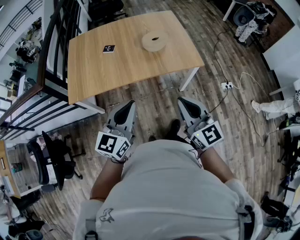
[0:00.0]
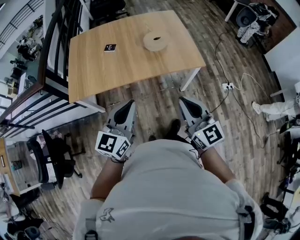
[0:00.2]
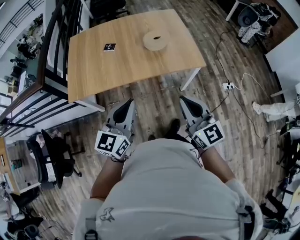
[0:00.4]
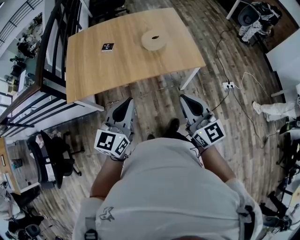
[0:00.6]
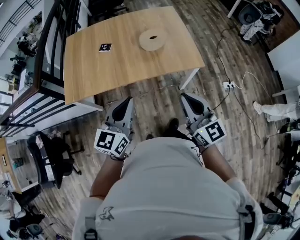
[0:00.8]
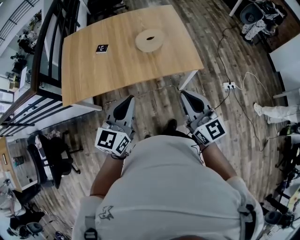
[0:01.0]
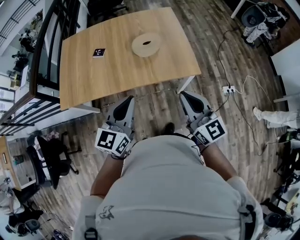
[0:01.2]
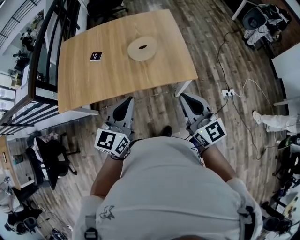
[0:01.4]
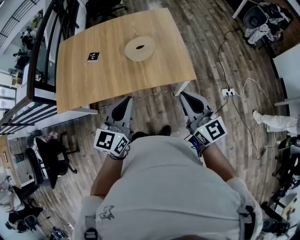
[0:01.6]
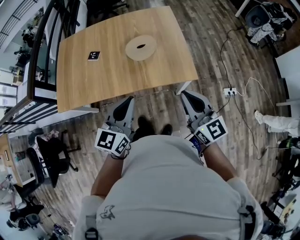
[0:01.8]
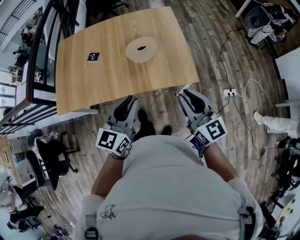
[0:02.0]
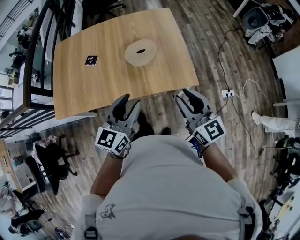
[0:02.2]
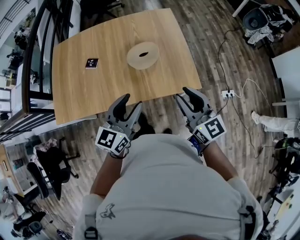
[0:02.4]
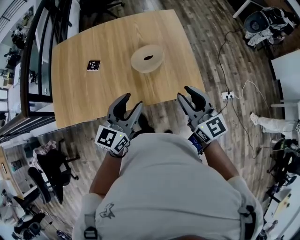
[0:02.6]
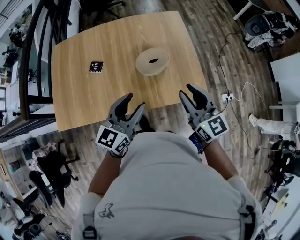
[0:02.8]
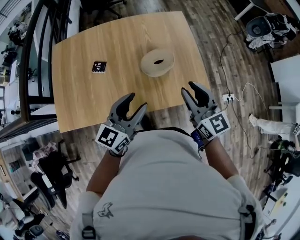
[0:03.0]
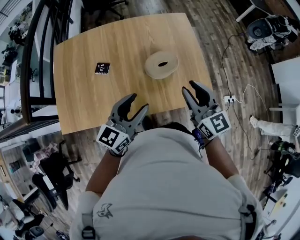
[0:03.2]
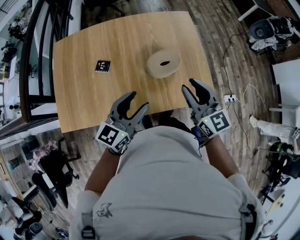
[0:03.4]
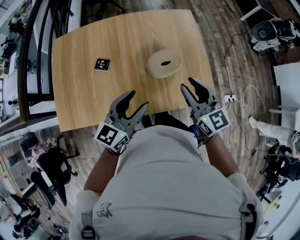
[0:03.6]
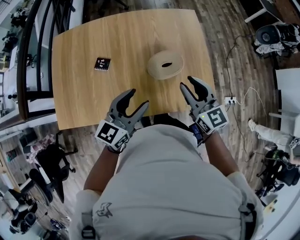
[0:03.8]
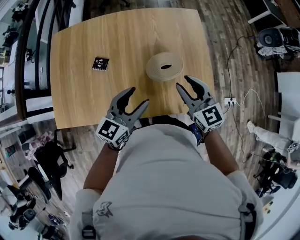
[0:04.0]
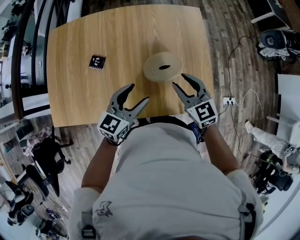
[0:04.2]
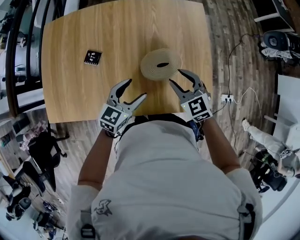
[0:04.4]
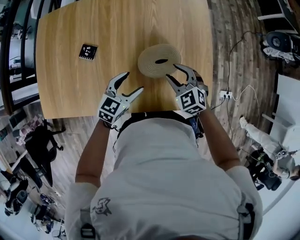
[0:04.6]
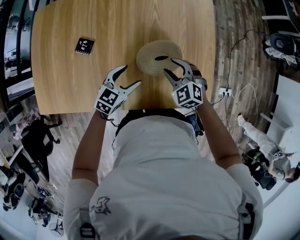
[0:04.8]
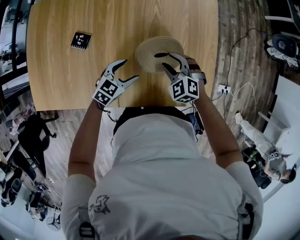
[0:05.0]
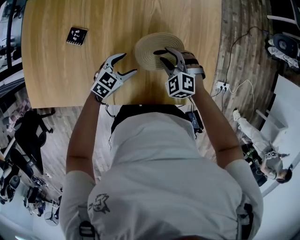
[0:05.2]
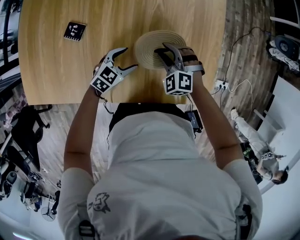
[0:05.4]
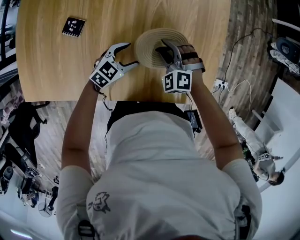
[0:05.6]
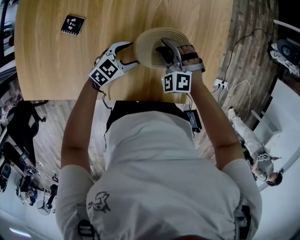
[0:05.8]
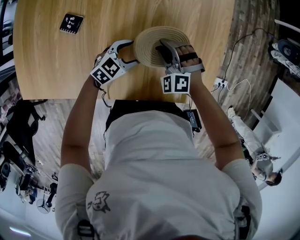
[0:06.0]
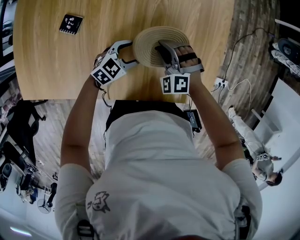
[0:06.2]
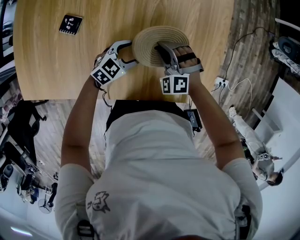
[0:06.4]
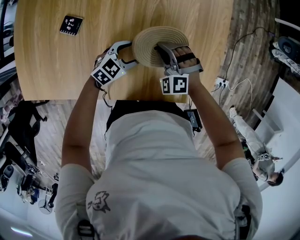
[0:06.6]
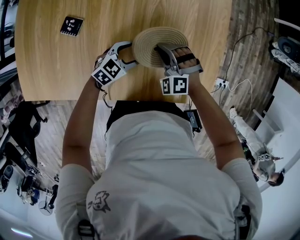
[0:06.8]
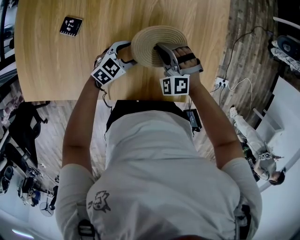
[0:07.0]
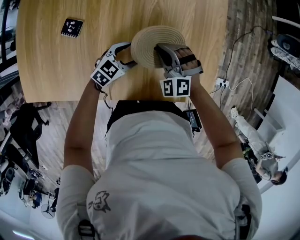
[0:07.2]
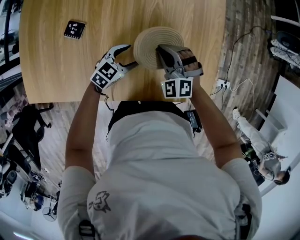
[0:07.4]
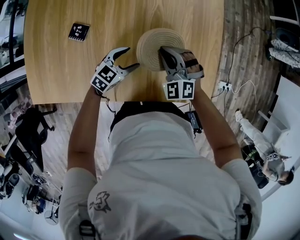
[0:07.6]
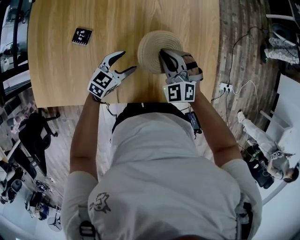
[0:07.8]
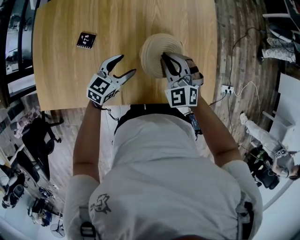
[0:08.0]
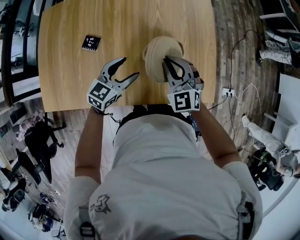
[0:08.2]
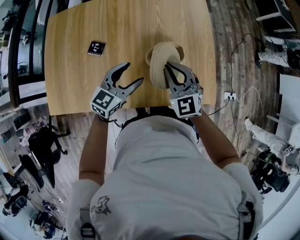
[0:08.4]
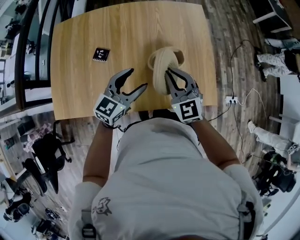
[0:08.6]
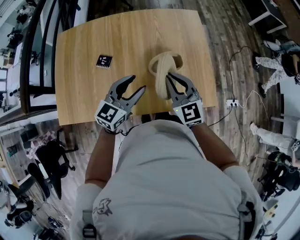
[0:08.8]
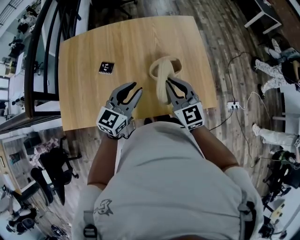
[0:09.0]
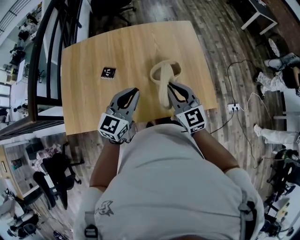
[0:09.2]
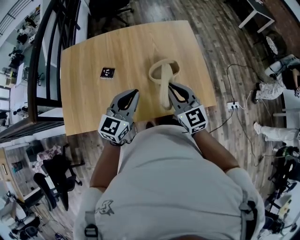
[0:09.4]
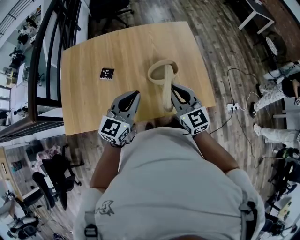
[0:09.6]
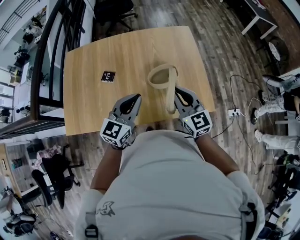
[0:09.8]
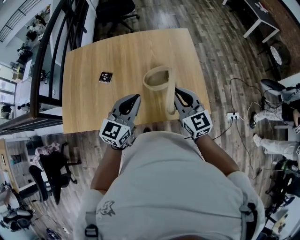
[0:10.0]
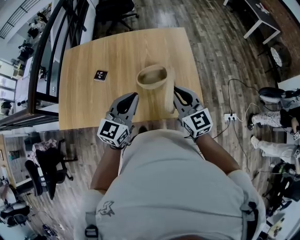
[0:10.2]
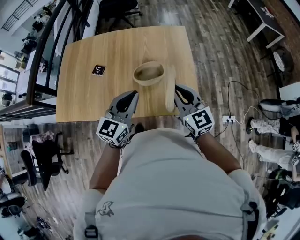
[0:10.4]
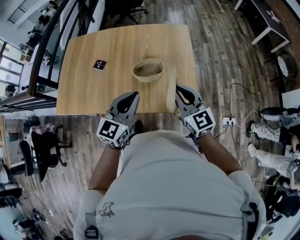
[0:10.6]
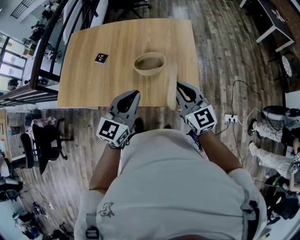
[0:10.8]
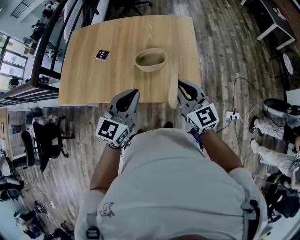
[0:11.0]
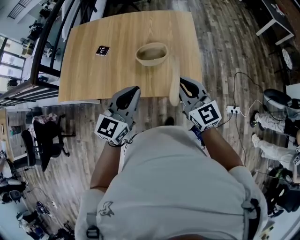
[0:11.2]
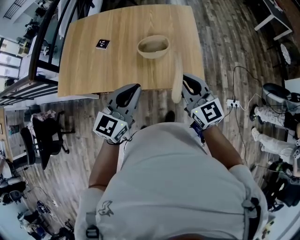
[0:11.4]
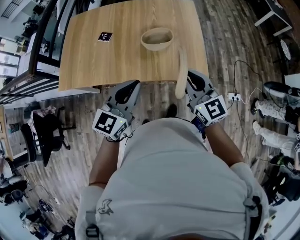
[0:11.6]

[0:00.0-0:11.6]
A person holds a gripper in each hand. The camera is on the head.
0:00.0 to 0:01.4: The two grippers go approximately 20 cm to the right and forward.
0:01.4 to 0:02.8: The two grippers go roughly 20 cm forward. The right gripper opens its fingers, while the left gripper opens up.
0:02.8 to 0:04.4: The left gripper moves downward and forward, some 20 cm. The right gripper goes roughly 25 cm forward and downward, and swivels some 40 degrees.
0:04.4 to 0:05.8: The grippers both shift downward by approximately 20 cm. The right gripper rolls counterclockwise, seen from behind, by about 40 degrees.
0:05.8 to 0:07.2: The right gripper closes.
0:07.2 to 0:08.8: The right gripper goes about 25 cm upward and backward, and rolls clockwise, seen from behind, by approximately 40 degrees, while the left gripper moves upward, about 30 cm, and turns by roughly 30 degrees.
0:08.8 to 0:10.2: The grippers both shift to the right, upward and backward by roughly 15 cm. The left gripper closes its fingers.
0:10.2 to 0:11.6: The two grippers go roughly 15 cm backward.

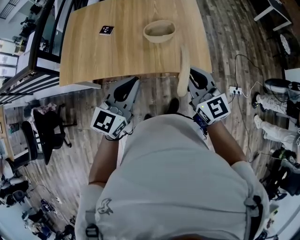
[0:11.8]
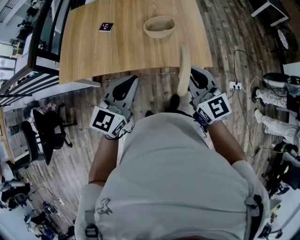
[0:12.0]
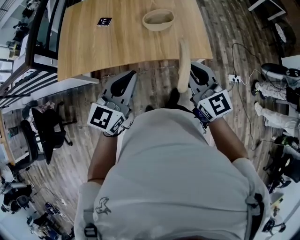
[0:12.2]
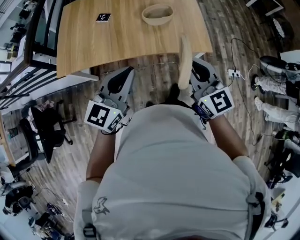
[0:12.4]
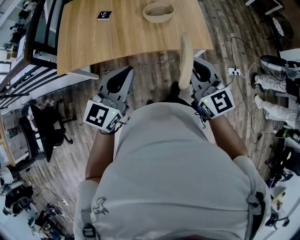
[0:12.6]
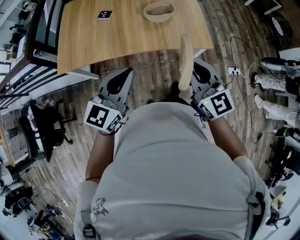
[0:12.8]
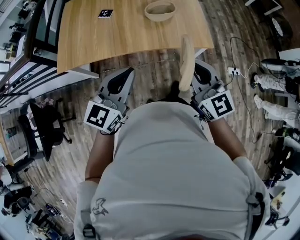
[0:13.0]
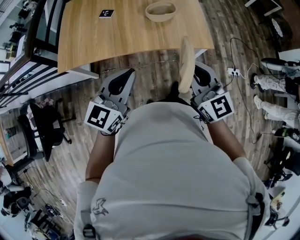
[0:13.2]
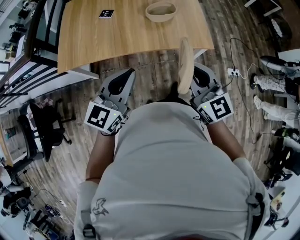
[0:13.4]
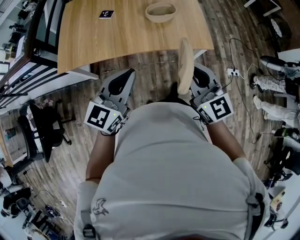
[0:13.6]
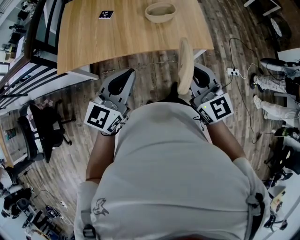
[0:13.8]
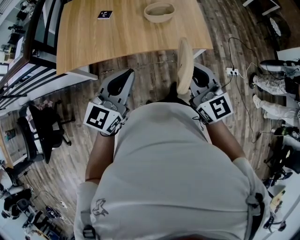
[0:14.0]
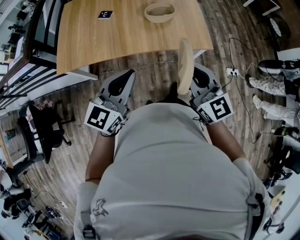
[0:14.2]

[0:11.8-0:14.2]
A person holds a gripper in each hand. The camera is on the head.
0:11.8 to 0:13.0: Both grippers move backward and to the left, some 10 cm.
0:13.0 to 0:14.2: Neither gripper changes place.

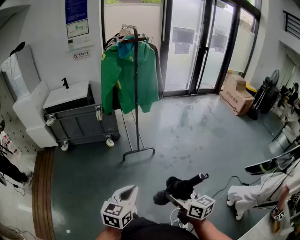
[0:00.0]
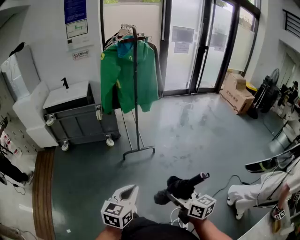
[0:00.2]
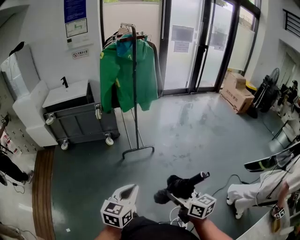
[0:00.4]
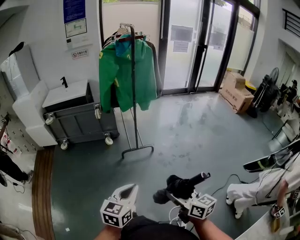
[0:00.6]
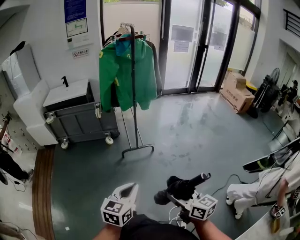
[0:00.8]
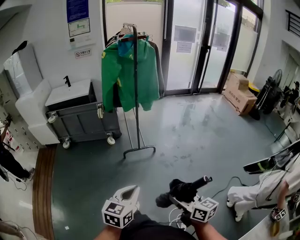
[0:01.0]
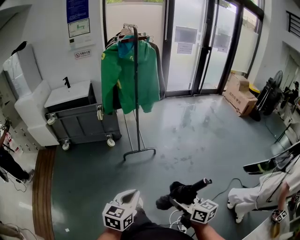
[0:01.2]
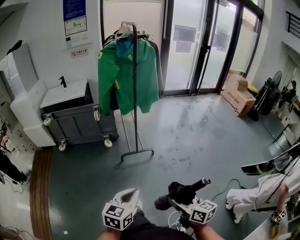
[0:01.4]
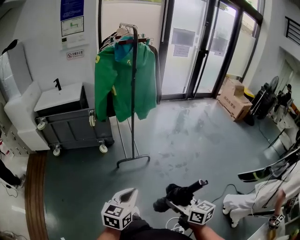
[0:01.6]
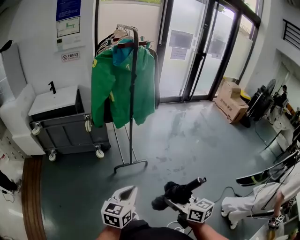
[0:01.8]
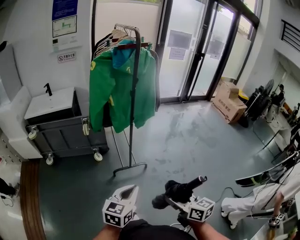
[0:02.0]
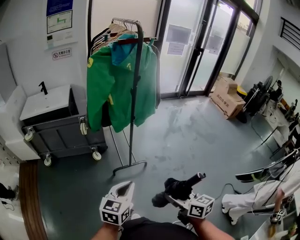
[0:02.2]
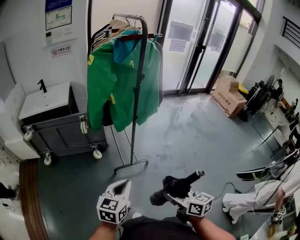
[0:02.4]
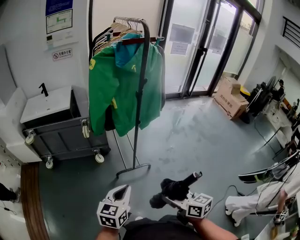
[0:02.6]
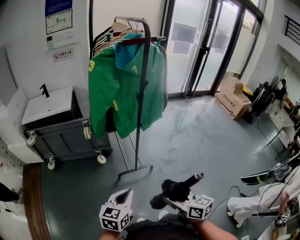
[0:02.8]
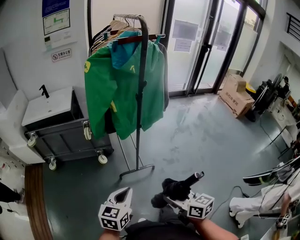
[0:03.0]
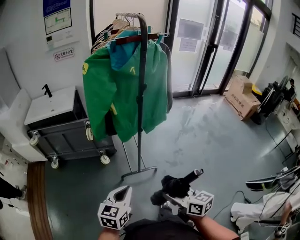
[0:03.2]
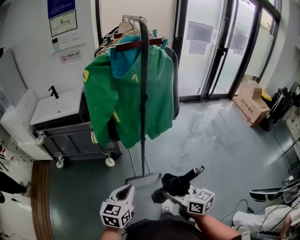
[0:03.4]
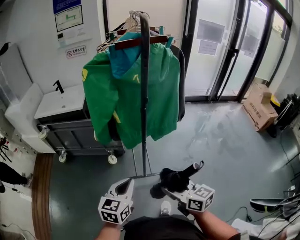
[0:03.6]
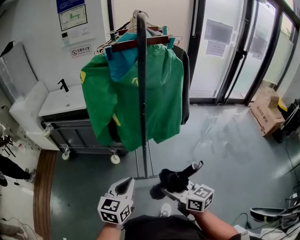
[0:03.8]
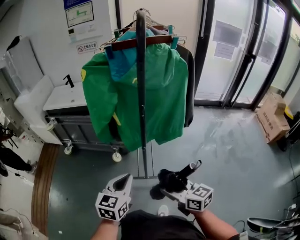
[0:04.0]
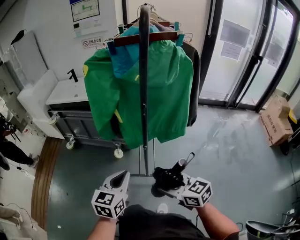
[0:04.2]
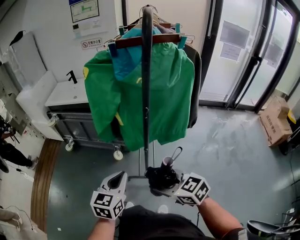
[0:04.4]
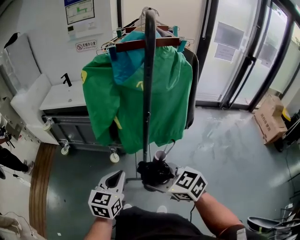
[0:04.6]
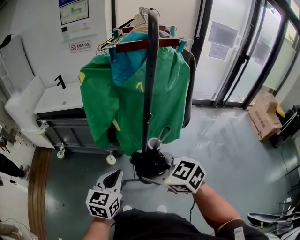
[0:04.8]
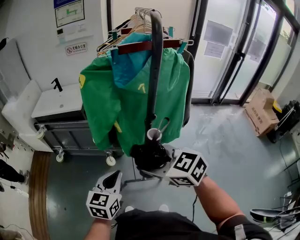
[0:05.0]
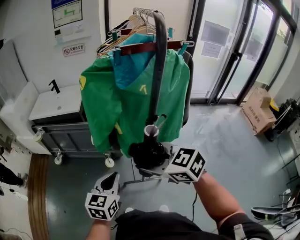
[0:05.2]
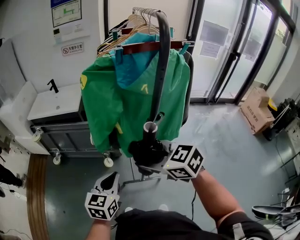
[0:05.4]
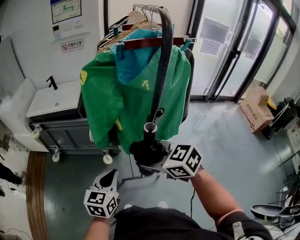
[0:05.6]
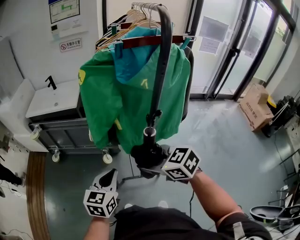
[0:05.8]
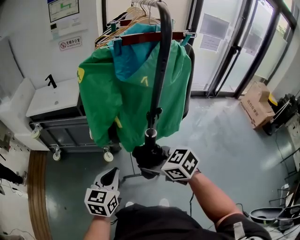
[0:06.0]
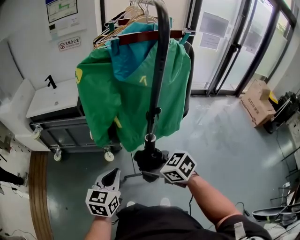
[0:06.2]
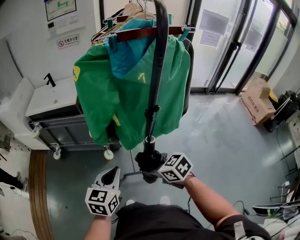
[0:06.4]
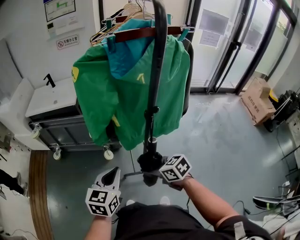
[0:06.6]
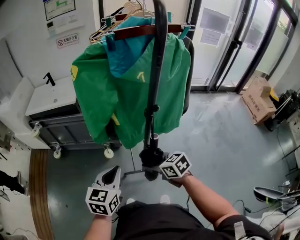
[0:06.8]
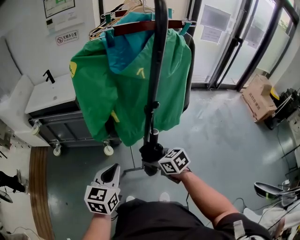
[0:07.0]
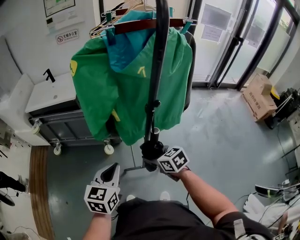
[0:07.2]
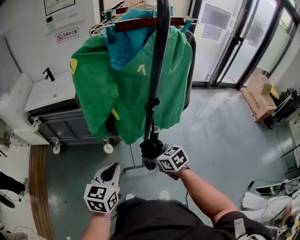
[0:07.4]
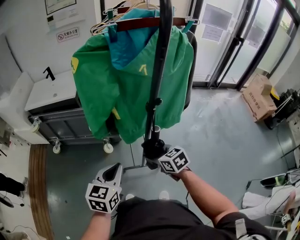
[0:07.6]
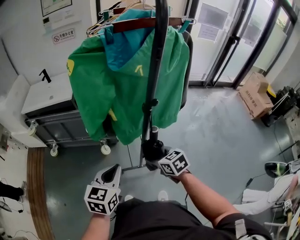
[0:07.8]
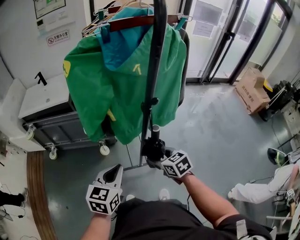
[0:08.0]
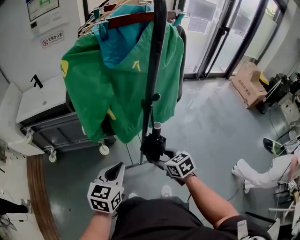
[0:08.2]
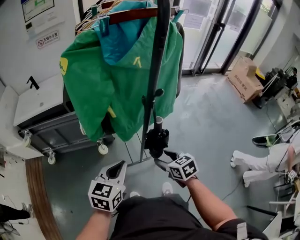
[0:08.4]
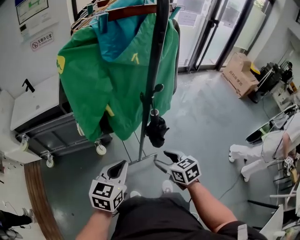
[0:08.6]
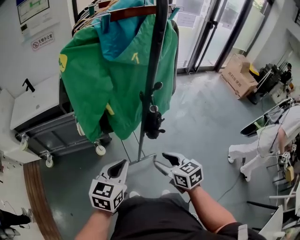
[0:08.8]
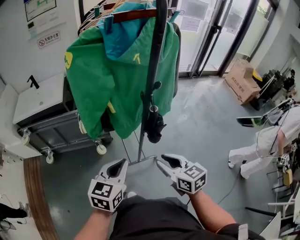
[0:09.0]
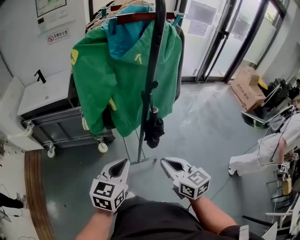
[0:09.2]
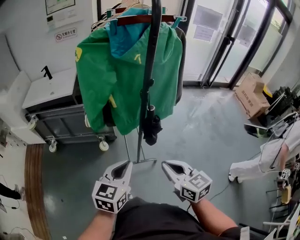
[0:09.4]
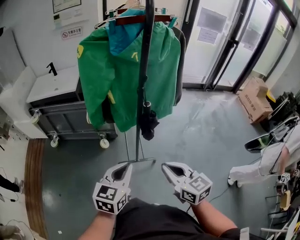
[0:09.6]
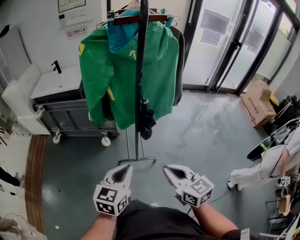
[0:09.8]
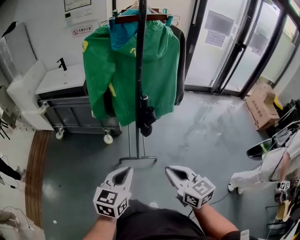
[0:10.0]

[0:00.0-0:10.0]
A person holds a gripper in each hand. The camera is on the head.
0:00.0 to 0:01.4: The left gripper ends up approximately 5 cm from where it was.
0:01.4 to 0:02.8: Both grippers travel together forward, some 30 cm.
0:02.8 to 0:04.2: The right gripper shifts by some 25 cm, and swivels about 40 degrees; the left gripper moves some 25 cm, and changes its angle by about 20 degrees.
0:04.2 to 0:05.8: The left gripper goes approximately 10 cm forward and to the left. Meanwhile the right gripper shifts some 15 cm forward, to the left and upward.
0:05.8 to 0:07.2: The right gripper goes some 15 cm downward, and turns by about 20 degrees.
0:07.2 to 0:08.6: The right gripper travels backward by approximately 5 cm, and changes its angle by approximately 20 degrees, while the left gripper turns by some 20 degrees.
0:08.6 to 0:10.0: The right gripper goes some 20 cm backward, to the right and upward, changes its angle by about 30 degrees, and closes its fingers. The left gripper moves backward and to the right, approximately 20 cm.
